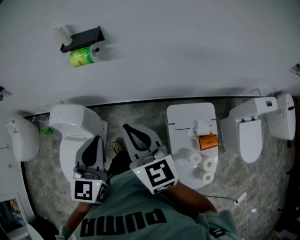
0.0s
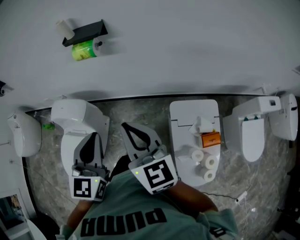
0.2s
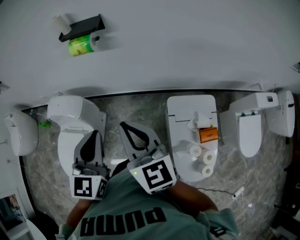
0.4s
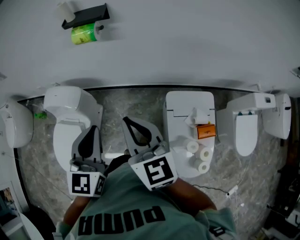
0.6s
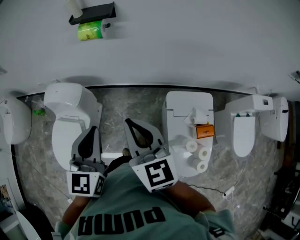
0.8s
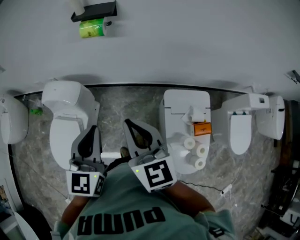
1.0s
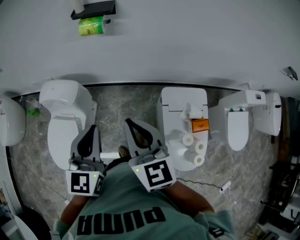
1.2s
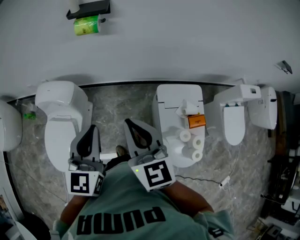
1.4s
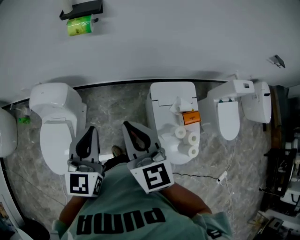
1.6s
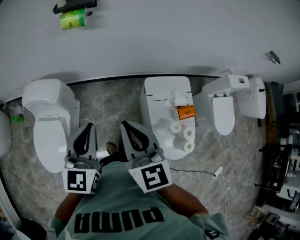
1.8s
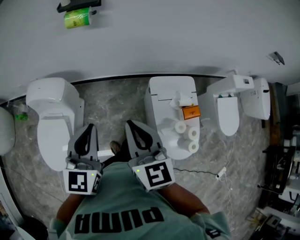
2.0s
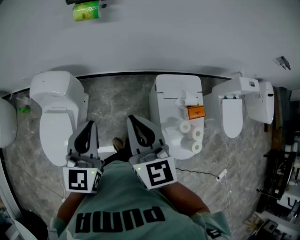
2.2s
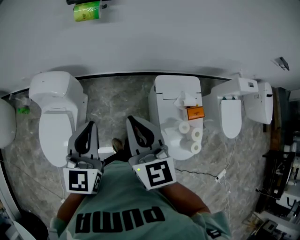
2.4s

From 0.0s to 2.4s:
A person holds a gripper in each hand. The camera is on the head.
From 0.0s to 1.2s: The right gripper travels backward and to the left by roughly 10 cm. The left gripper shifts roughly 10 cm to the left and backward.
From 1.2s to 2.4s: The grippers make only small movements.

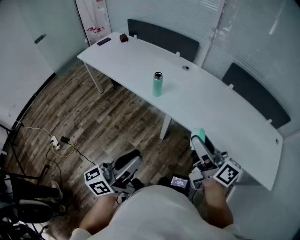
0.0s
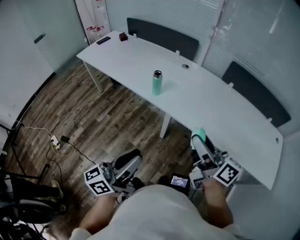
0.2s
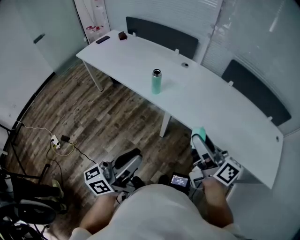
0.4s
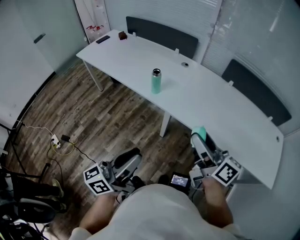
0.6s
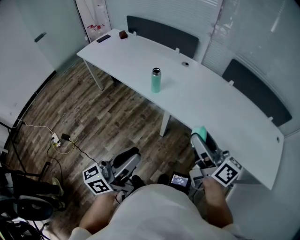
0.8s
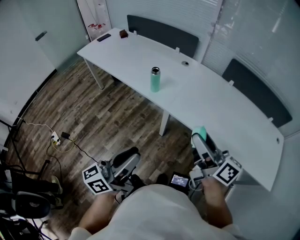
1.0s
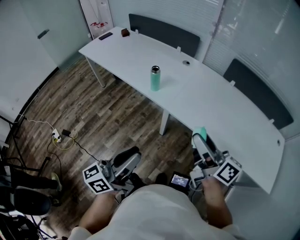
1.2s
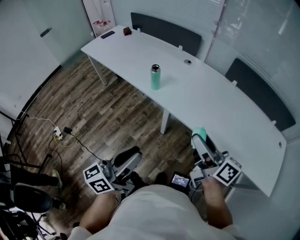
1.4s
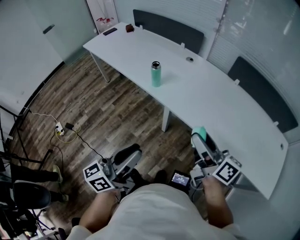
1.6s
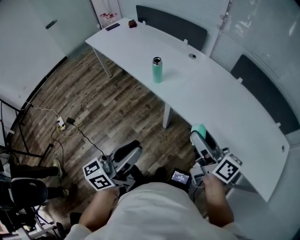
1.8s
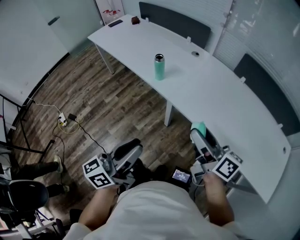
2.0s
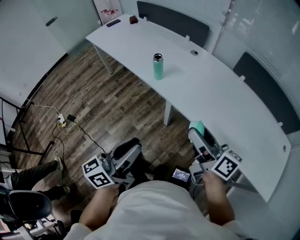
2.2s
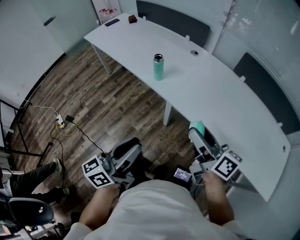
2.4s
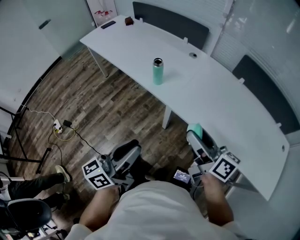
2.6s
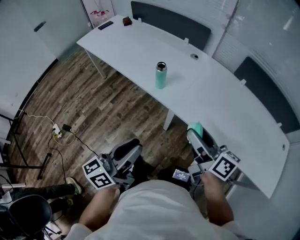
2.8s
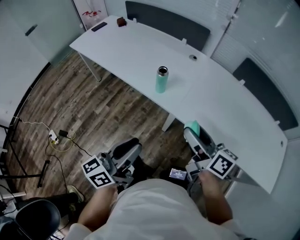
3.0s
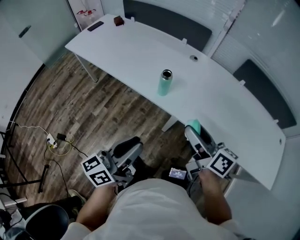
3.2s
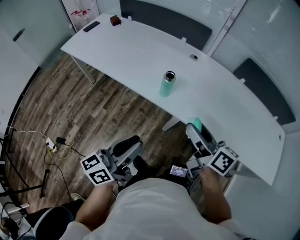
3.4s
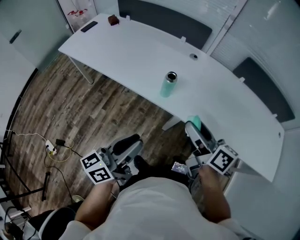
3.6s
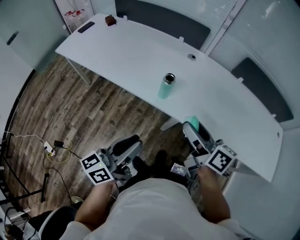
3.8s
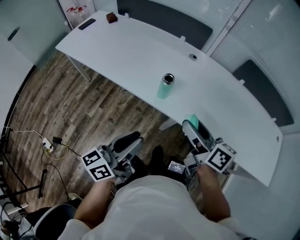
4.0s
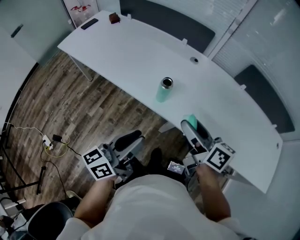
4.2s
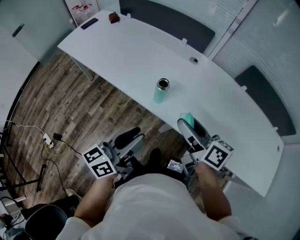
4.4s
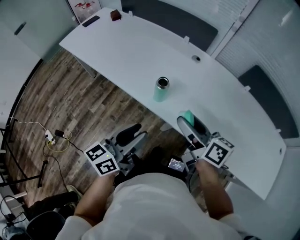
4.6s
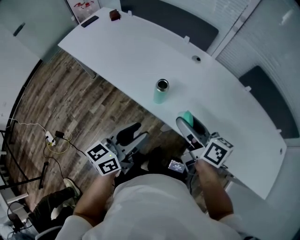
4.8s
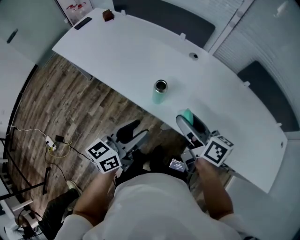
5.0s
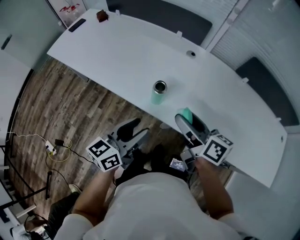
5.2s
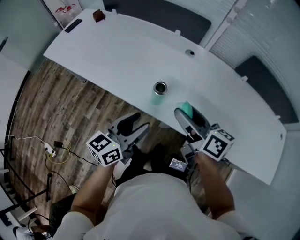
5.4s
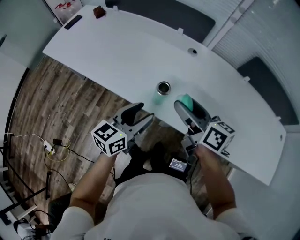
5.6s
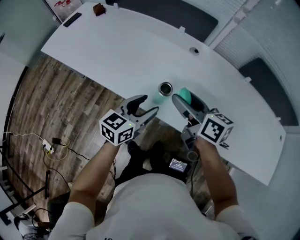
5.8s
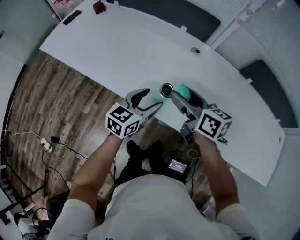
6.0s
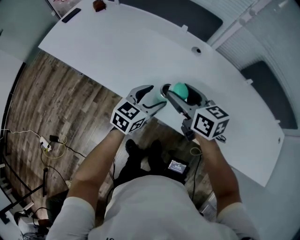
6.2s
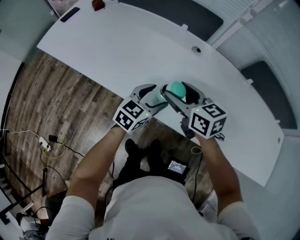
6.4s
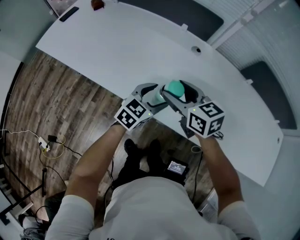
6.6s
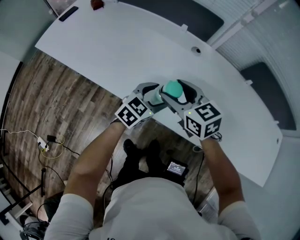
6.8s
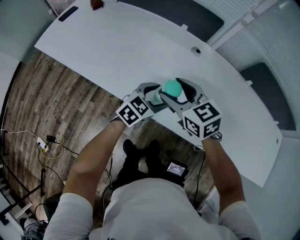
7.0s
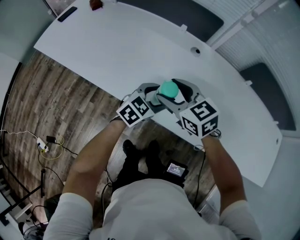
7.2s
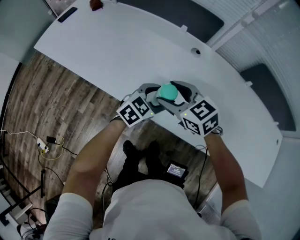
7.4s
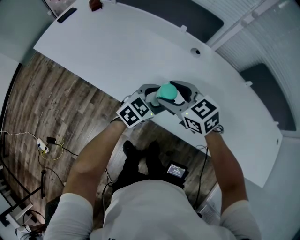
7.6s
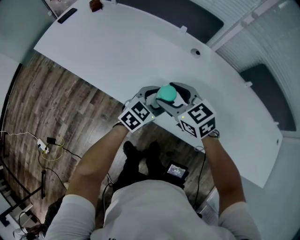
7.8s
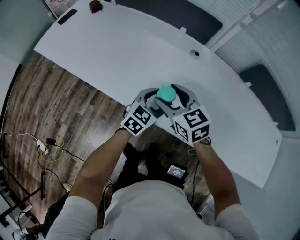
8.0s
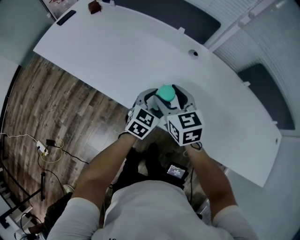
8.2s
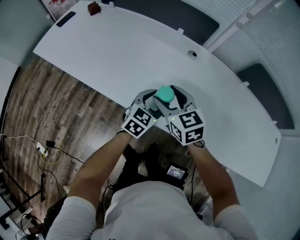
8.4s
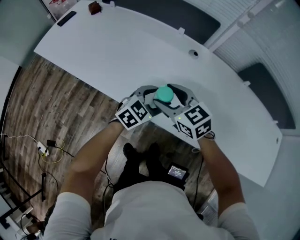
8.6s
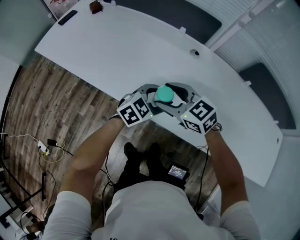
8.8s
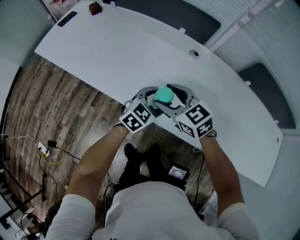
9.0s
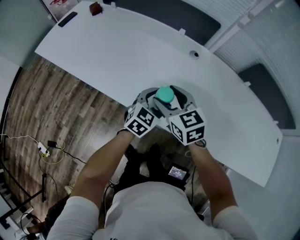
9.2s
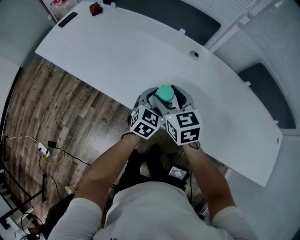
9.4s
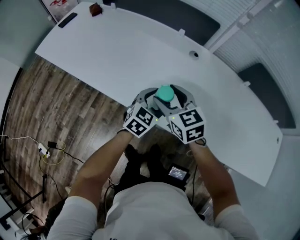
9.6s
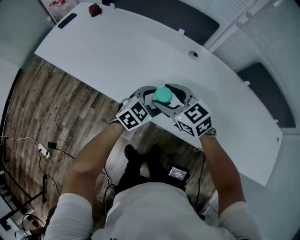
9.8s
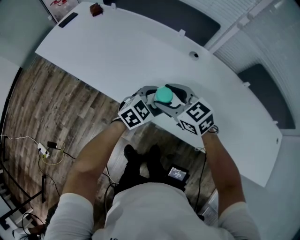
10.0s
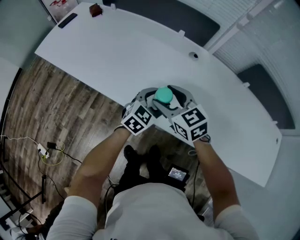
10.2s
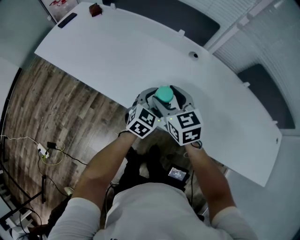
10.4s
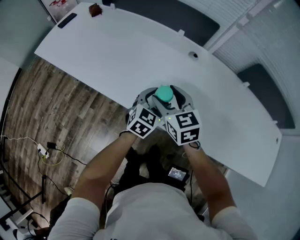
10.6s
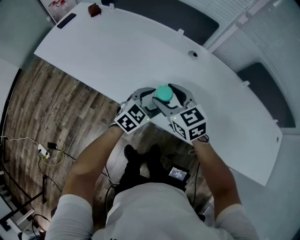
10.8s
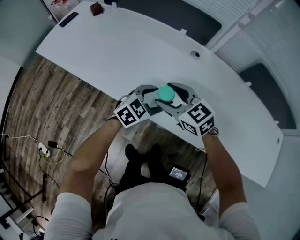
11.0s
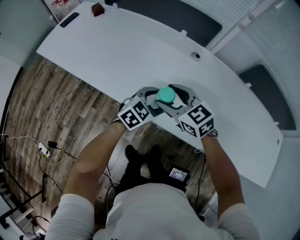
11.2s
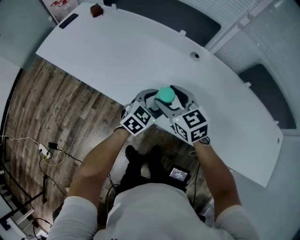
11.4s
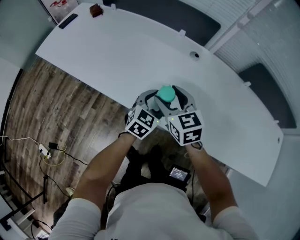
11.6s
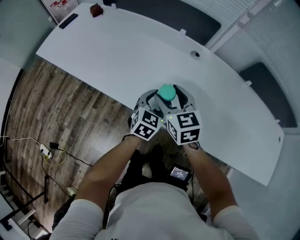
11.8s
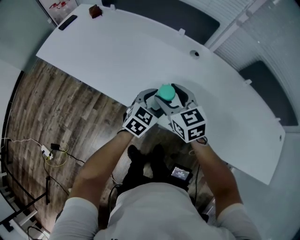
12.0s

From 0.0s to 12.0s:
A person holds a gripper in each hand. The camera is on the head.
From 0.0s to 1.6s: The two grippers go about 5 cm to the right.
From 1.6s to 3.0s: The grippers both shift forward and to the left by approximately 15 cm.
From 3.0s to 4.4s: Both grippers travel together forward, about 15 cm.
From 4.4s to 6.0s: The right gripper goes roughly 15 cm forward, while the left gripper shifts roughly 25 cm forward and downward, swivels roughly 30 degrees, and opens.
From 6.0s to 7.6s: The right gripper heads to the left, covering approximately 5 cm, and turns by about 40 degrees. The left gripper is displaced downward by about 5 cm, and changes its angle by roughly 30 degrees.

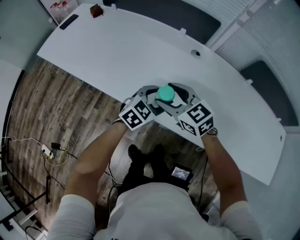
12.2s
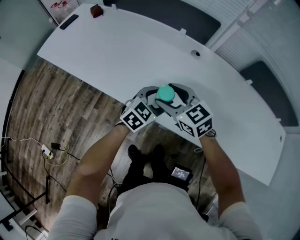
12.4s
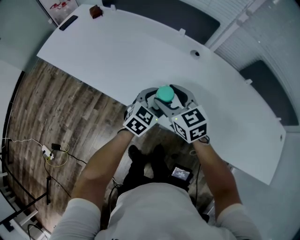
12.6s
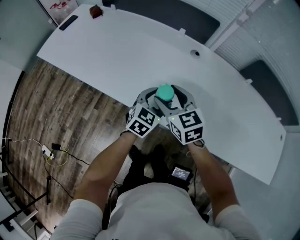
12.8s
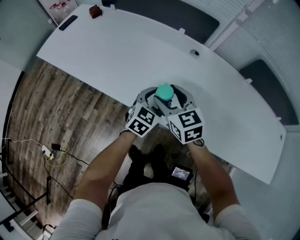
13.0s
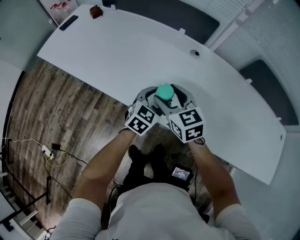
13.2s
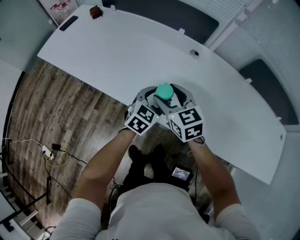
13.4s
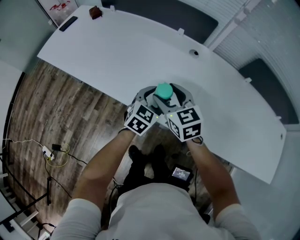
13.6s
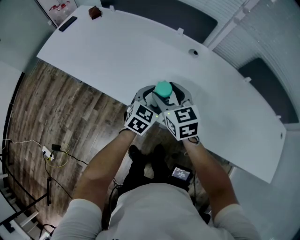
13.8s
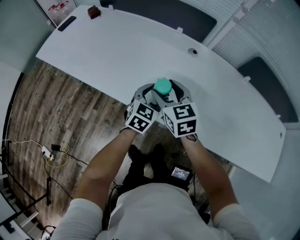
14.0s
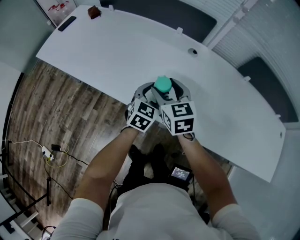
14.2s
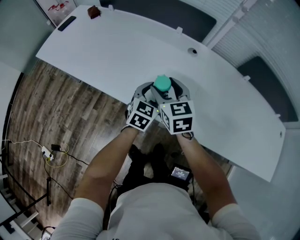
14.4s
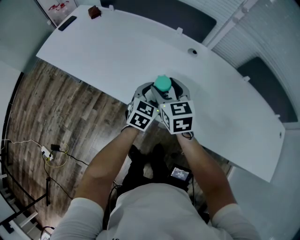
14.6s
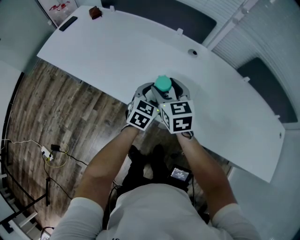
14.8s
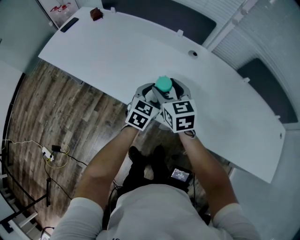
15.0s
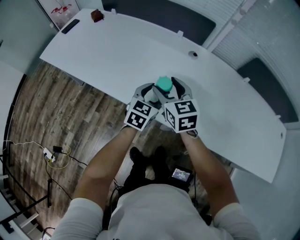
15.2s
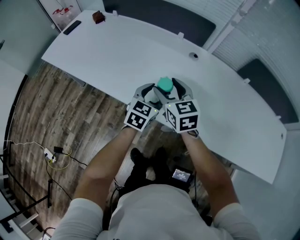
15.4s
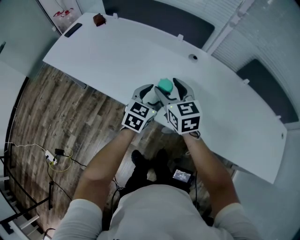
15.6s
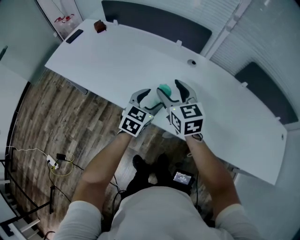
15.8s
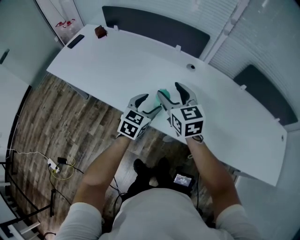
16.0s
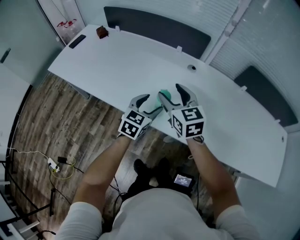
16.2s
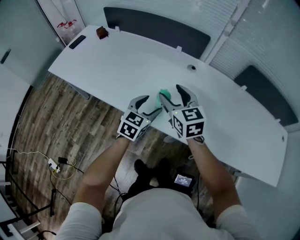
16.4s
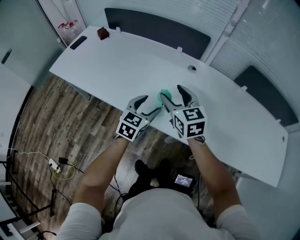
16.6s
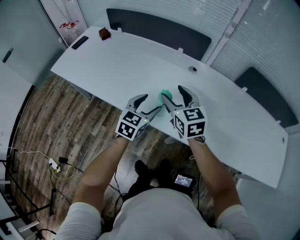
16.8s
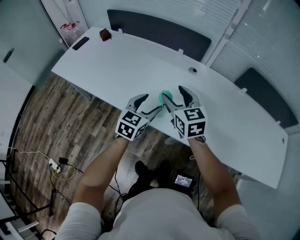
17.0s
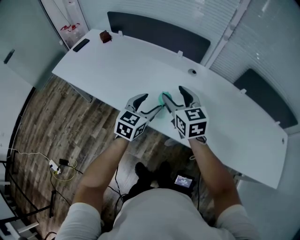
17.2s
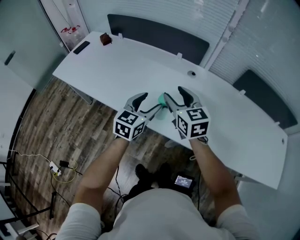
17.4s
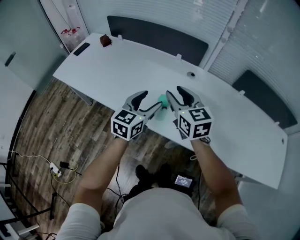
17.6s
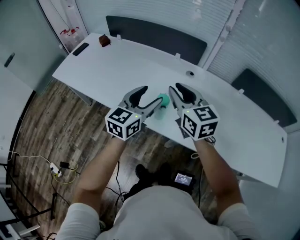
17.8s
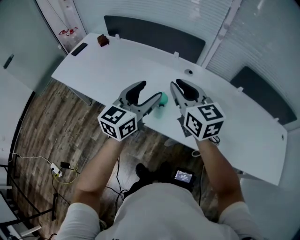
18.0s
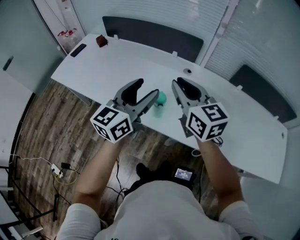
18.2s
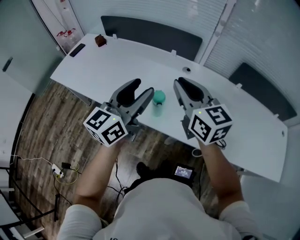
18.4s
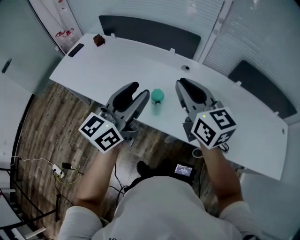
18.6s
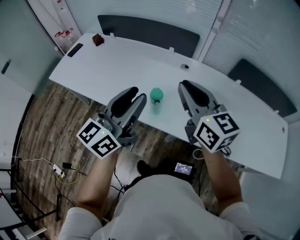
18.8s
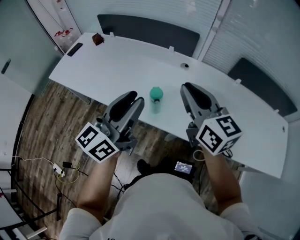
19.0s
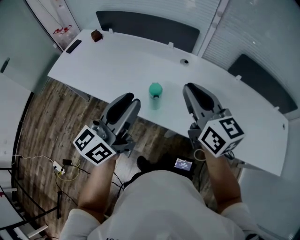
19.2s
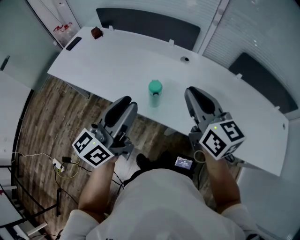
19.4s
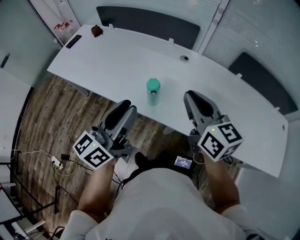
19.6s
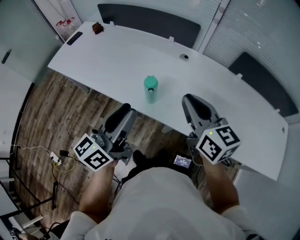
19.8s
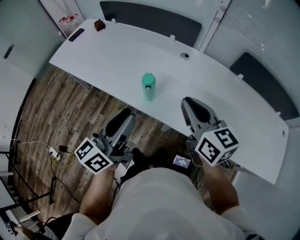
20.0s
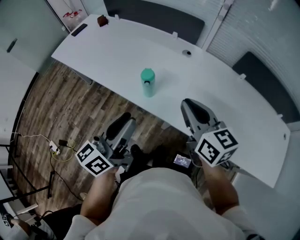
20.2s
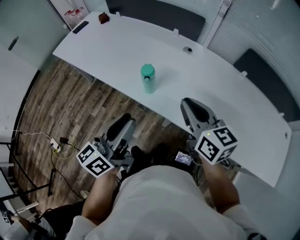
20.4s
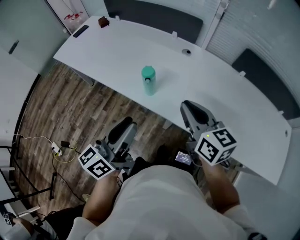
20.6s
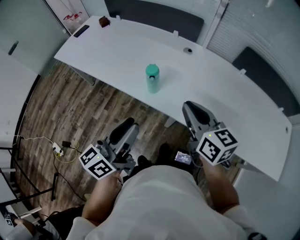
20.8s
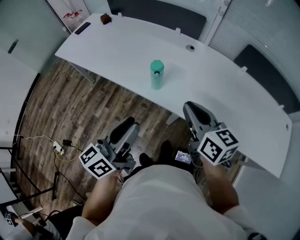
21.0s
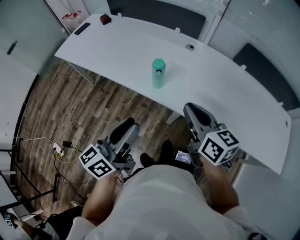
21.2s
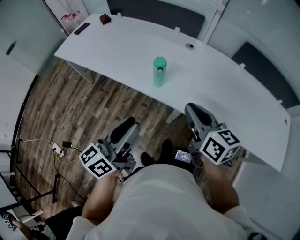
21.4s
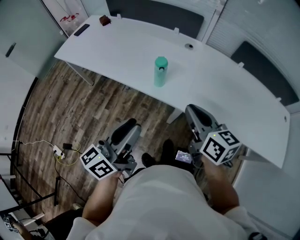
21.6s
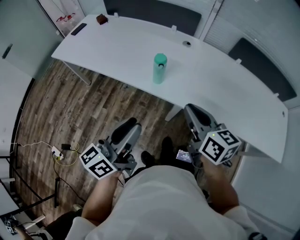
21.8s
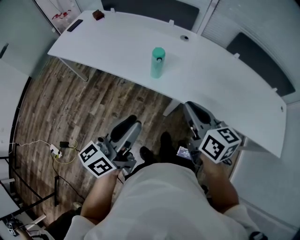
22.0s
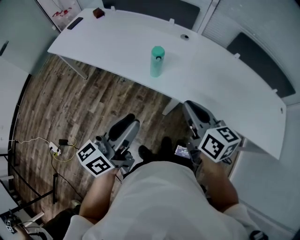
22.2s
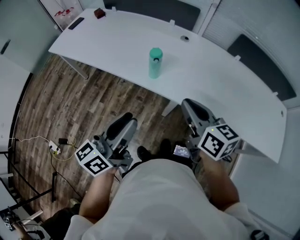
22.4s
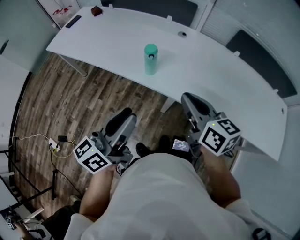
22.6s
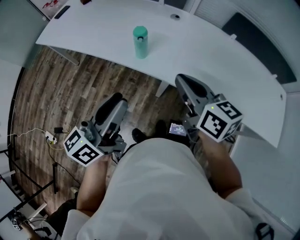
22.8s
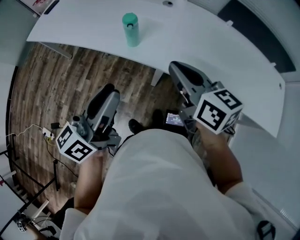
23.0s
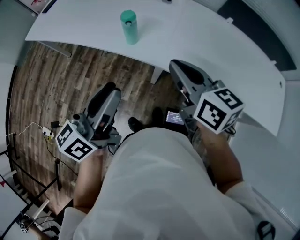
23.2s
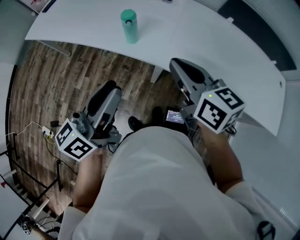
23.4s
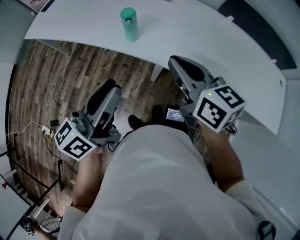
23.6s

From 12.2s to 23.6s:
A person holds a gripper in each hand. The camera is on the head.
From 12.2s to 13.6s: The grippers stay close to where they were, moving slightly.
From 13.6s to 15.0s: The grippers make only small movements.
From 15.0s to 16.4s: The left gripper ends up some 5 cm from where it was. Meanwhile the right gripper moves upward, approximately 5 cm.
From 16.4s to 17.8s: The left gripper moves upward, approximately 15 cm, while the right gripper moves upward, roughly 10 cm, and closes its fingers.
From 17.8s to 19.4s: The left gripper is displaced backward and upward by roughly 15 cm, rotates about 30 degrees, and closes. The right gripper goes approximately 10 cm backward and to the right.
From 19.4s to 20.8s: The two grippers go about 10 cm backward and downward.
From 20.8s to 22.2s: The grippers both shift backward by about 10 cm.
From 22.2s to 23.6s: The left gripper is displaced to the right by approximately 5 cm.
